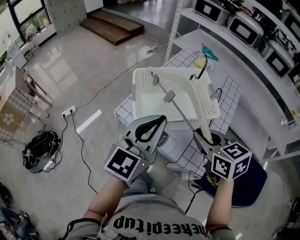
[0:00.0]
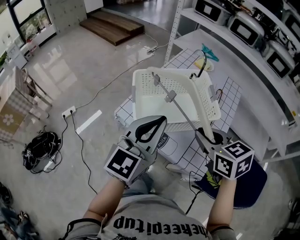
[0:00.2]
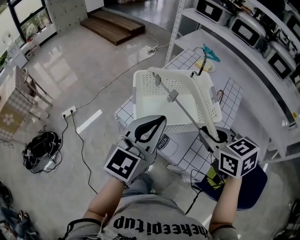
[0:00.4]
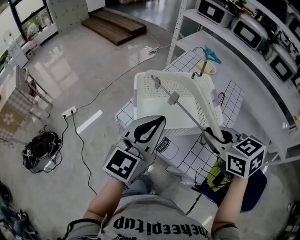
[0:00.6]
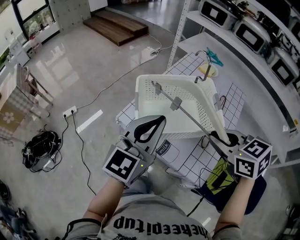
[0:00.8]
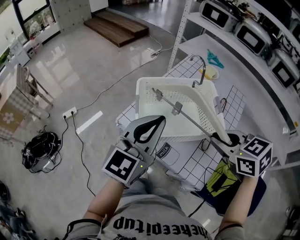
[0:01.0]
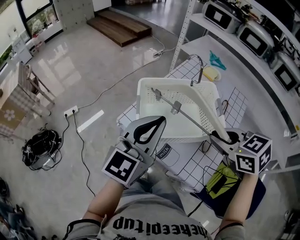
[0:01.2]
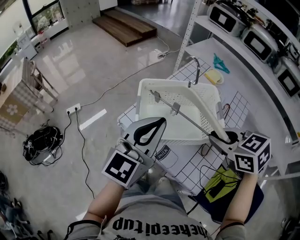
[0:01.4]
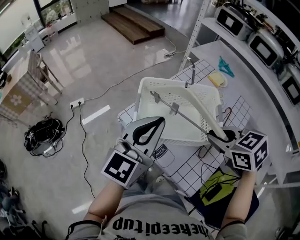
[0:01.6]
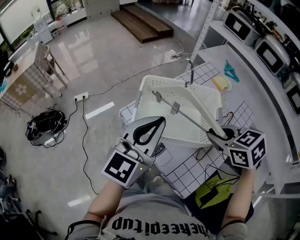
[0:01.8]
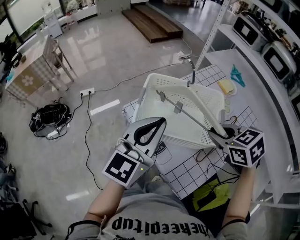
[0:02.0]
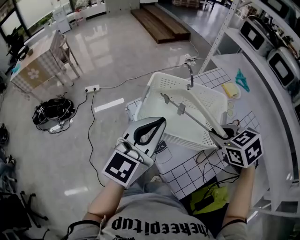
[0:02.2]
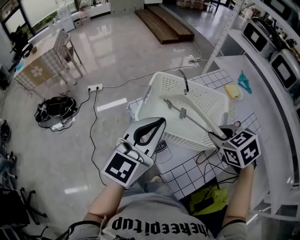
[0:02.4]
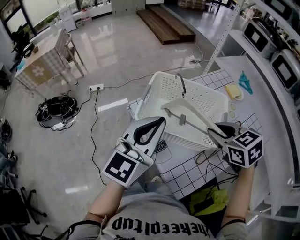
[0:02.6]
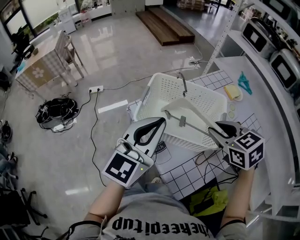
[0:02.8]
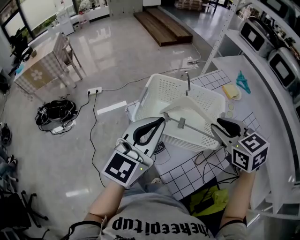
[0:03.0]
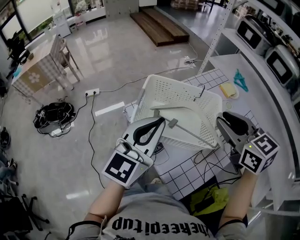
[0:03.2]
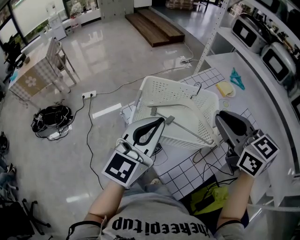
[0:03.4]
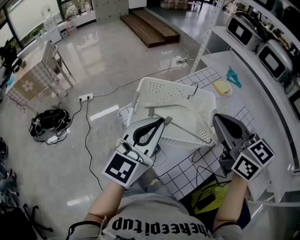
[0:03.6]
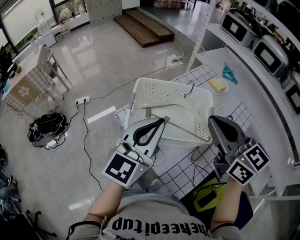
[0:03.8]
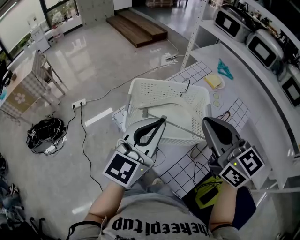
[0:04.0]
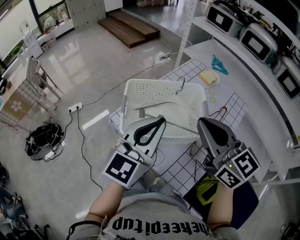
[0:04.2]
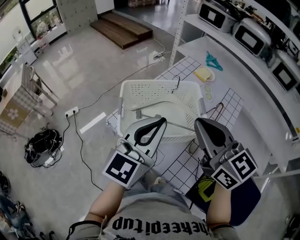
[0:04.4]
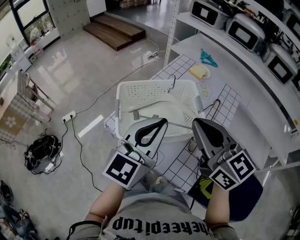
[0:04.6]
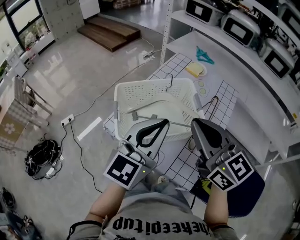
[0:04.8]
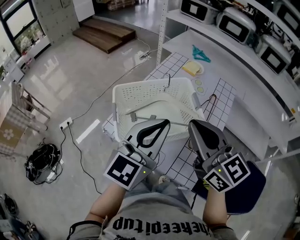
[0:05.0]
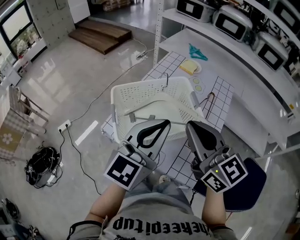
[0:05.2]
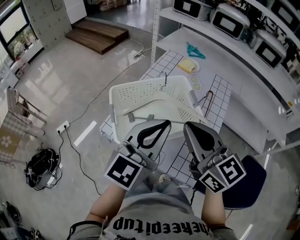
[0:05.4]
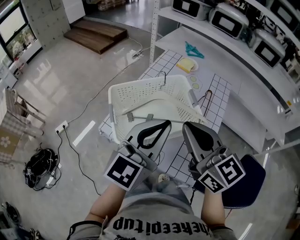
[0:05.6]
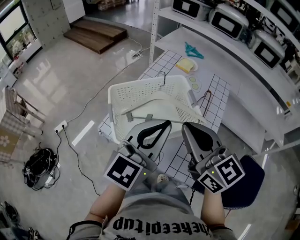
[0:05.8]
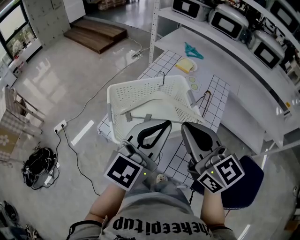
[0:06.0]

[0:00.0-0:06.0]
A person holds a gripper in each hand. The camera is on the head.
0:00.0 to 0:01.6: The two grippers go roughly 5 cm forward. The right gripper rotates some 30 degrees.
0:01.6 to 0:03.0: The right gripper shifts by roughly 5 cm.
0:03.0 to 0:04.4: The right gripper goes approximately 10 cm upward and backward, swivels roughly 30 degrees, and closes up.
0:04.4 to 0:06.0: The grippers move only a little.

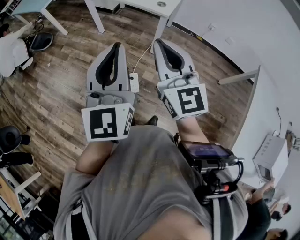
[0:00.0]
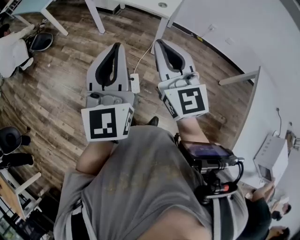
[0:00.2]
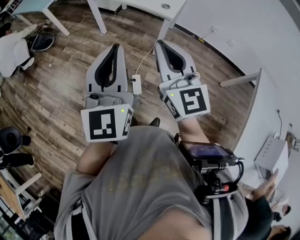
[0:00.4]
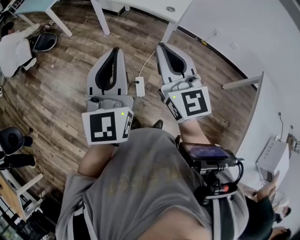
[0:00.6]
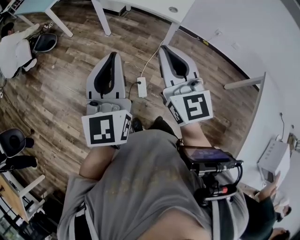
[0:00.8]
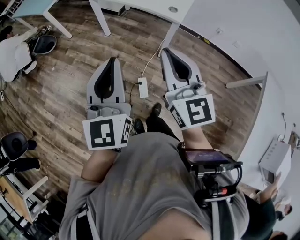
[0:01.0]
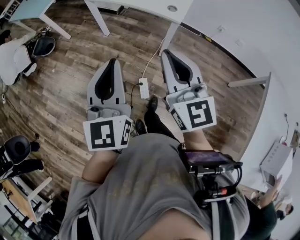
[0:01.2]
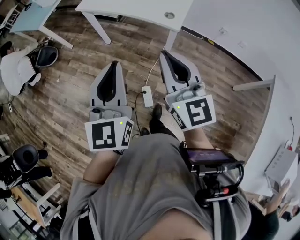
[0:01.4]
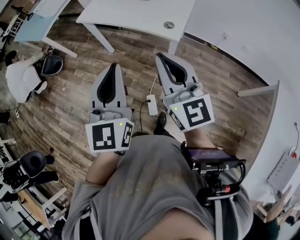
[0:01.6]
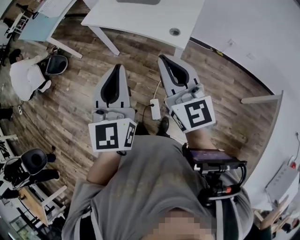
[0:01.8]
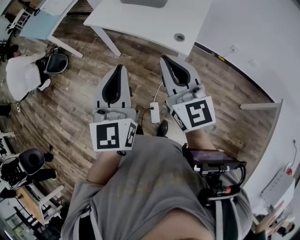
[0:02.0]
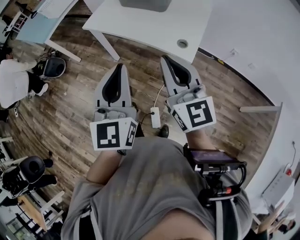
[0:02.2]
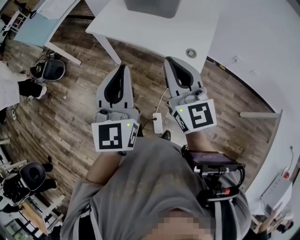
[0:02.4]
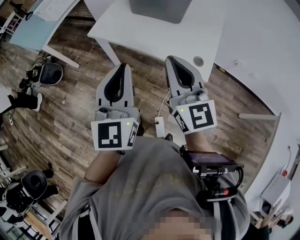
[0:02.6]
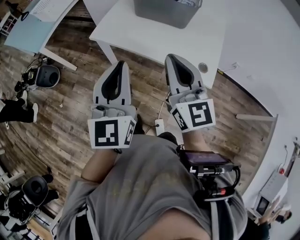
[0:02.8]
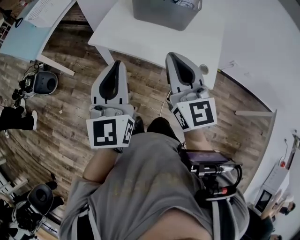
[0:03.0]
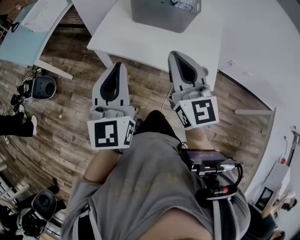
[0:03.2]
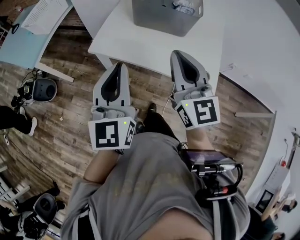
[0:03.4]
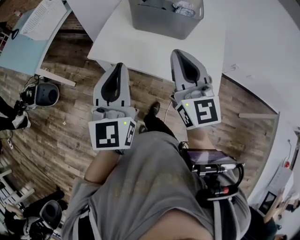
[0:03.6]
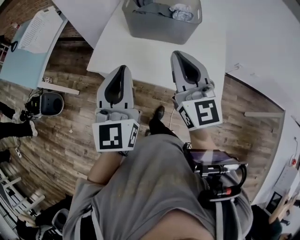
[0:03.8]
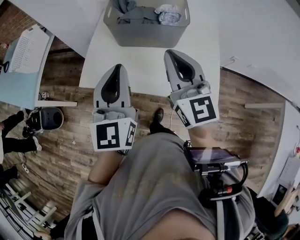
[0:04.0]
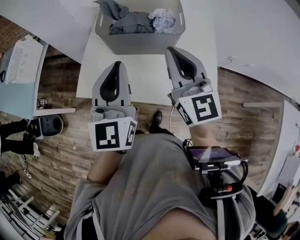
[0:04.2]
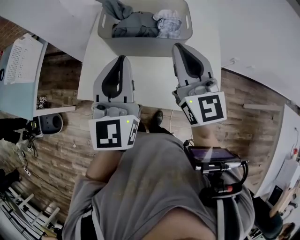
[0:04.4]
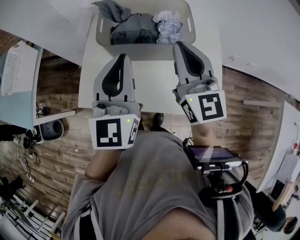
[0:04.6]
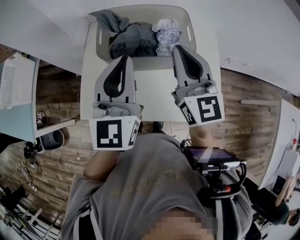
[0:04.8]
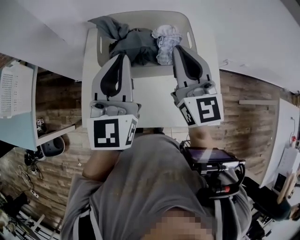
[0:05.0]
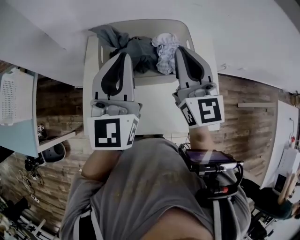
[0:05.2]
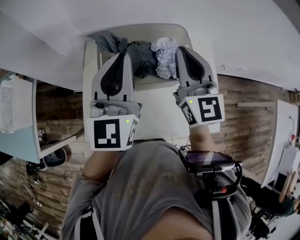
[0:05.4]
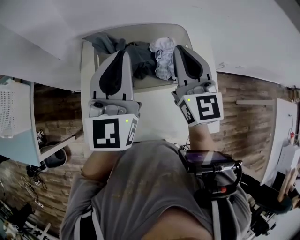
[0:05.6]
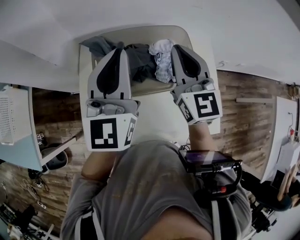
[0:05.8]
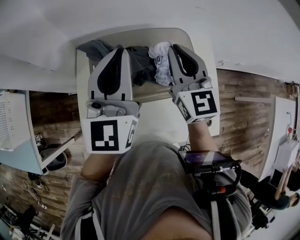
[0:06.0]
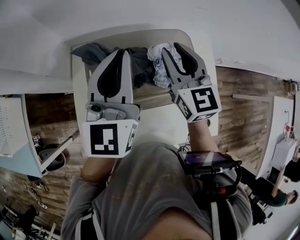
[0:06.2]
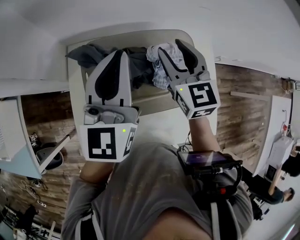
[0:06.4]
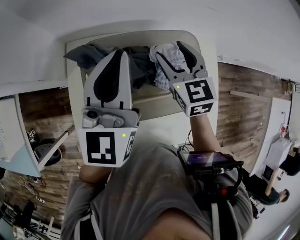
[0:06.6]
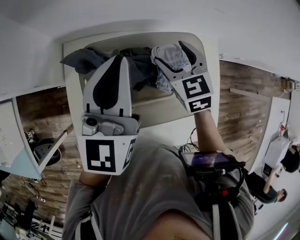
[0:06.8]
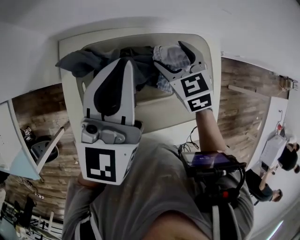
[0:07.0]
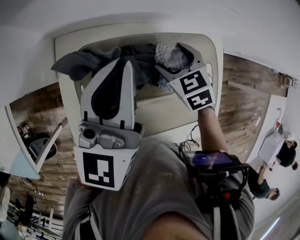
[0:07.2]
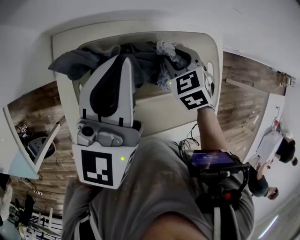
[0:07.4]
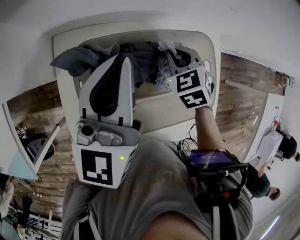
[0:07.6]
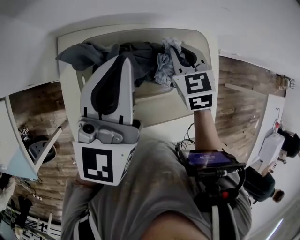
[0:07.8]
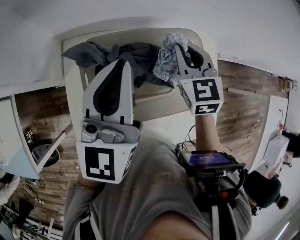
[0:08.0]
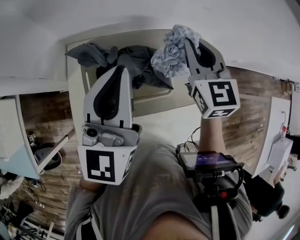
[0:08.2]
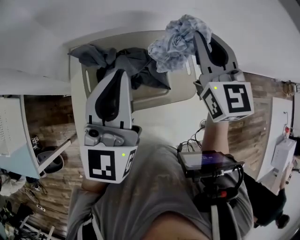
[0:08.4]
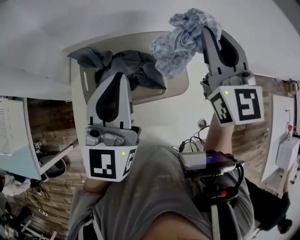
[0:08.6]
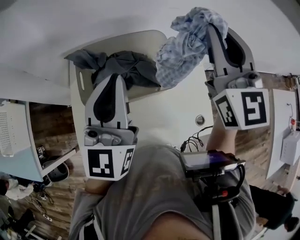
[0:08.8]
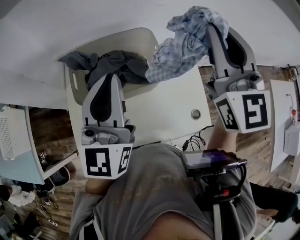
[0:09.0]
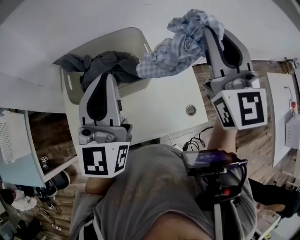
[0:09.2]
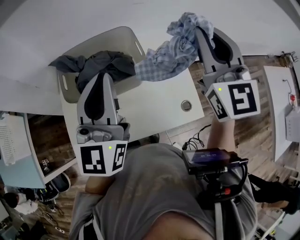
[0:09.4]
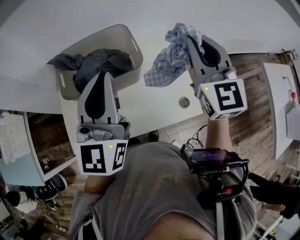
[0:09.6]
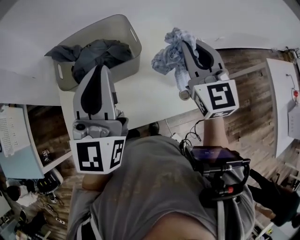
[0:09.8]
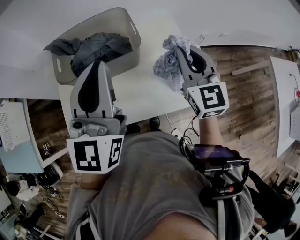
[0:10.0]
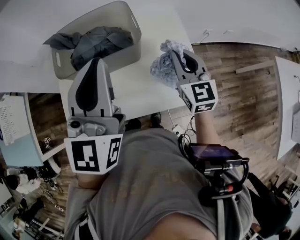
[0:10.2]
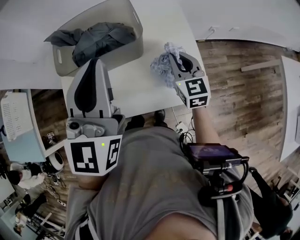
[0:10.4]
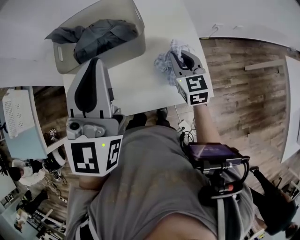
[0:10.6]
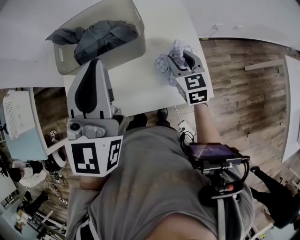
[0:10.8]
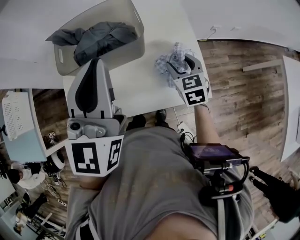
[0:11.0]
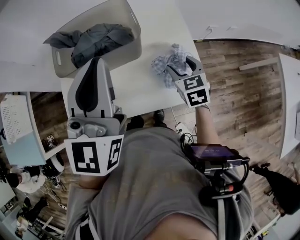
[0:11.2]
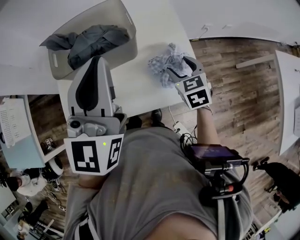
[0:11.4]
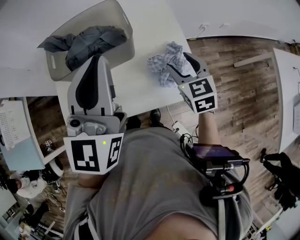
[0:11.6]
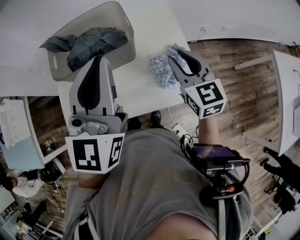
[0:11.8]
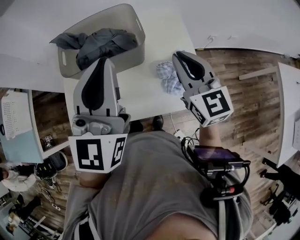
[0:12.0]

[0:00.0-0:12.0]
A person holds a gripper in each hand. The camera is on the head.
0:00.0 to 0:01.6: Both grippers travel together forward, roughly 20 cm.
0:01.6 to 0:03.0: The grippers both shift forward and to the left by approximately 35 cm.
0:03.0 to 0:04.4: Both grippers move forward, roughly 25 cm.
0:04.4 to 0:06.0: The grippers both shift forward by approximately 25 cm.
0:06.0 to 0:07.6: The left gripper heads forward and downward, covering roughly 10 cm; the right gripper is displaced downward by roughly 20 cm, angles its fingers downward, by approximately 50 degrees, and opens, then closes once more.
0:07.6 to 0:09.0: The right gripper travels upward and backward by some 40 cm, and tips its fingers upward by roughly 60 degrees; the left gripper travels backward, to the right and upward by roughly 25 cm.
0:09.0 to 0:10.4: The right gripper travels downward by approximately 30 cm, and turns by approximately 30 degrees, while the left gripper shifts approximately 10 cm to the right and backward.
0:10.4 to 0:12.0: The right gripper shifts some 10 cm upward, and opens, then closes once more.

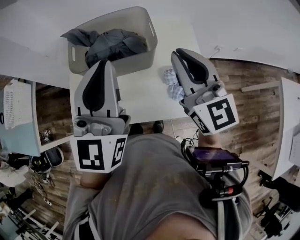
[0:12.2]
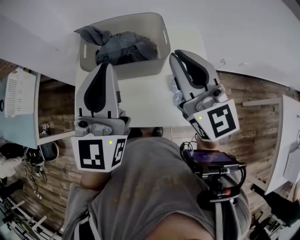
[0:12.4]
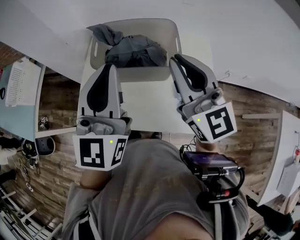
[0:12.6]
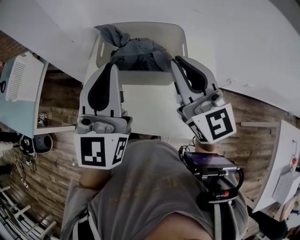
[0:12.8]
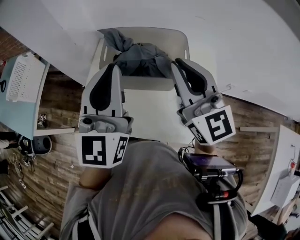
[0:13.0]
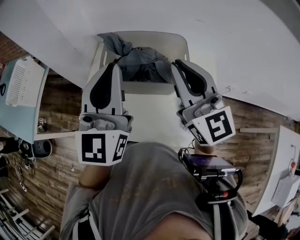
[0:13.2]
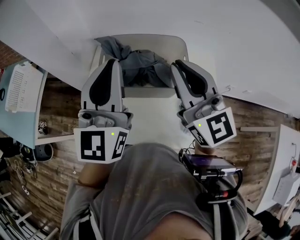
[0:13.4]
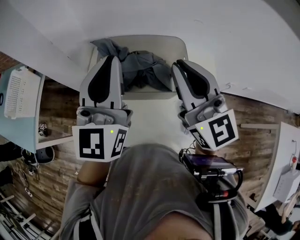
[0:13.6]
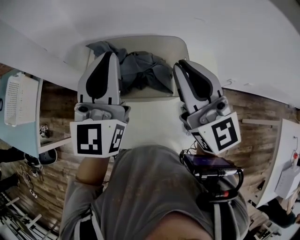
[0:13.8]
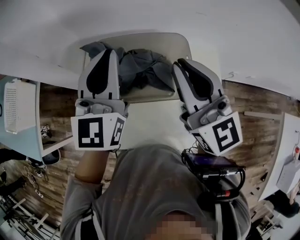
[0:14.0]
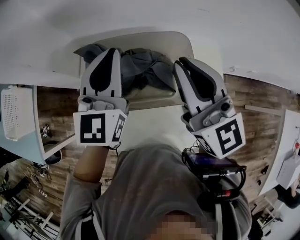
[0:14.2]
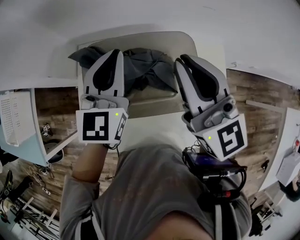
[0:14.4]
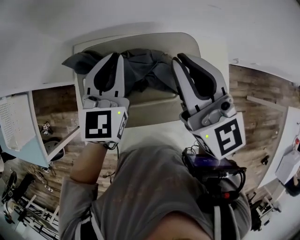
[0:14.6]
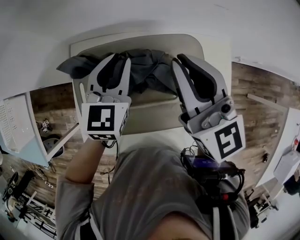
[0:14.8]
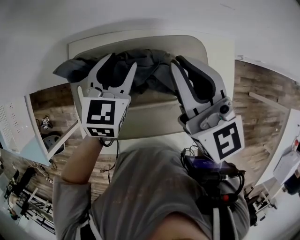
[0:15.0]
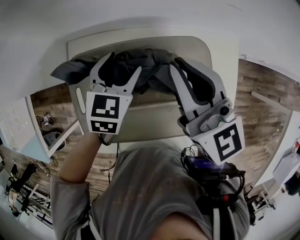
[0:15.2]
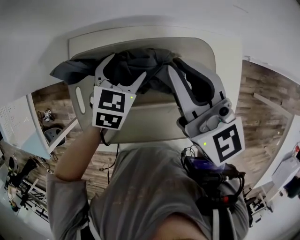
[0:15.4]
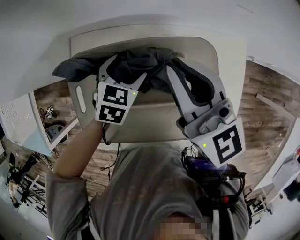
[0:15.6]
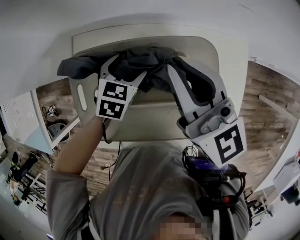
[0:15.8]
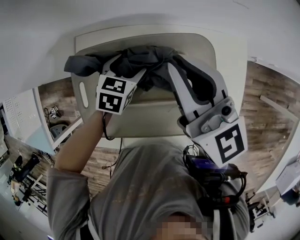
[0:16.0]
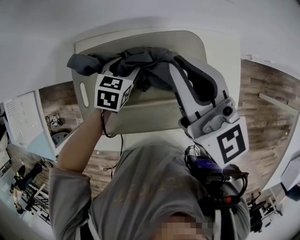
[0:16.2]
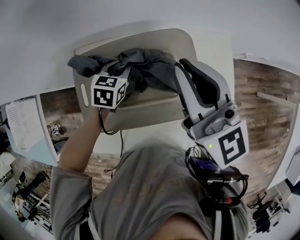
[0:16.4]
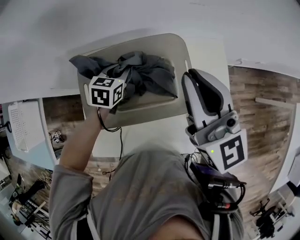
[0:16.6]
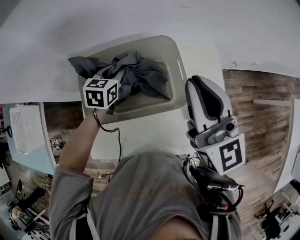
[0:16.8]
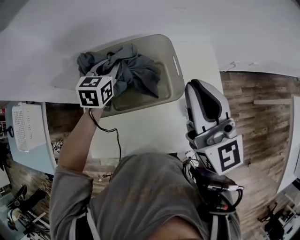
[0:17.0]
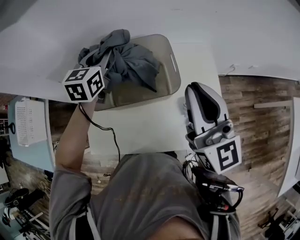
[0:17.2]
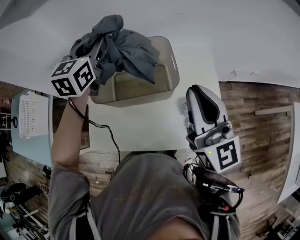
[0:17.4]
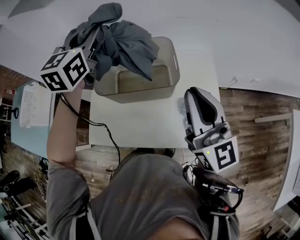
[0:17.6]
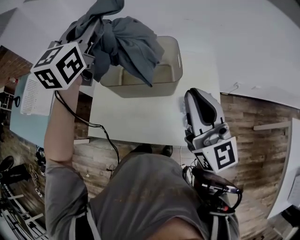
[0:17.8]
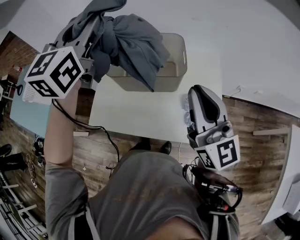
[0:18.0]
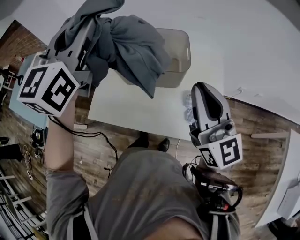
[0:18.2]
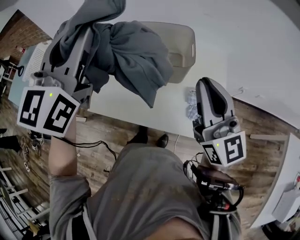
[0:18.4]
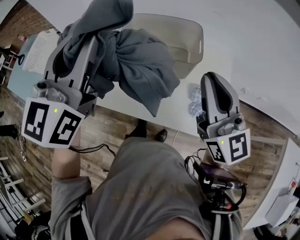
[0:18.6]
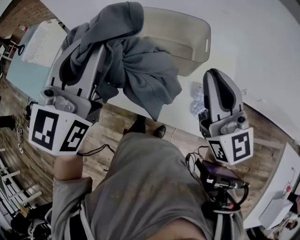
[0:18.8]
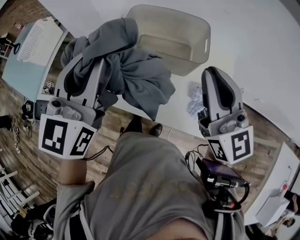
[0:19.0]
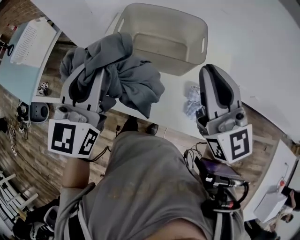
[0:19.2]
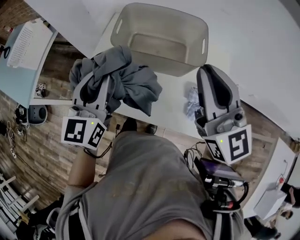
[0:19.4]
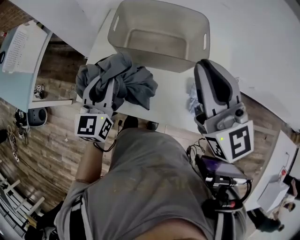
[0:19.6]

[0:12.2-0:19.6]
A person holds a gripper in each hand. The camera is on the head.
0:12.2 to 0:13.6: Both grippers travel together forward and to the left, approximately 15 cm.
0:13.6 to 0:15.2: The right gripper heads forward and downward, covering some 20 cm, and turns by roughly 20 degrees. Meanwhile the left gripper shifts about 35 cm downward and forward, angles its fingers downward, by approximately 50 degrees, and opens its fingers.
0:15.2 to 0:16.6: The left gripper closes its fingers. The right gripper moves backward, upward and to the right, some 15 cm.
0:16.6 to 0:18.2: The left gripper travels upward and backward by some 50 cm, and angles its fingers upward, by approximately 50 degrees. The right gripper is displaced backward by some 20 cm.
0:18.2 to 0:19.6: The left gripper shifts roughly 30 cm downward, and changes its angle by approximately 20 degrees. The right gripper goes roughly 10 cm to the left and forward.
